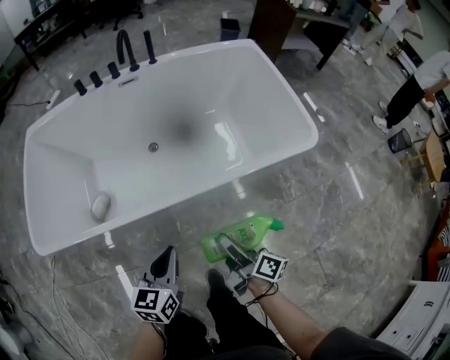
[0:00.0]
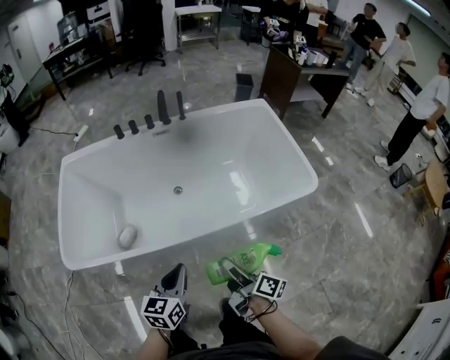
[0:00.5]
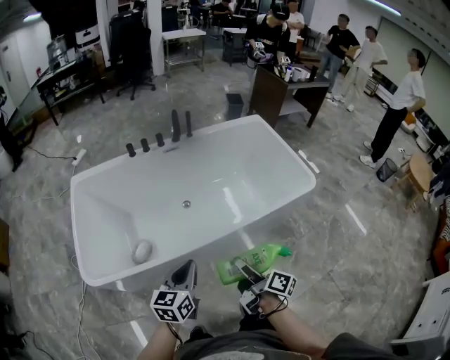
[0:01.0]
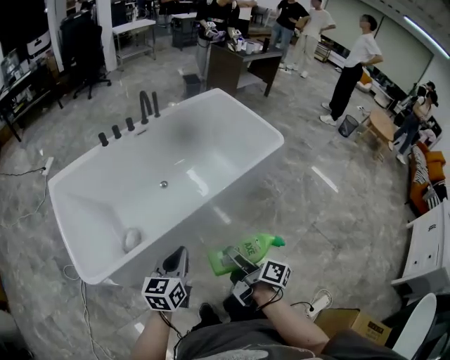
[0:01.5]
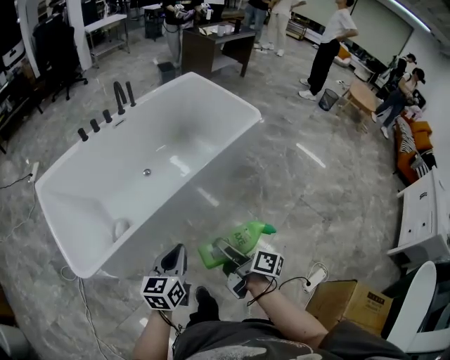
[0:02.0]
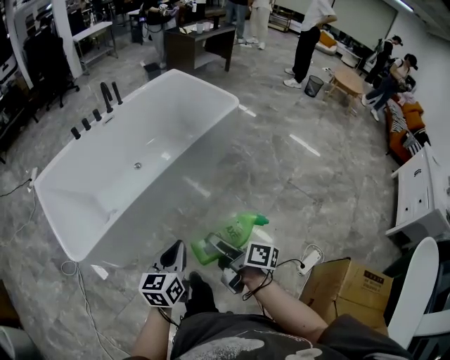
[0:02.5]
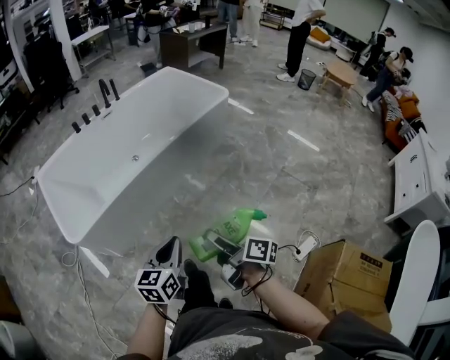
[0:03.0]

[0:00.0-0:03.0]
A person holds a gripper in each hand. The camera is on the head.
0:00.0 to 0:01.5: The right gripper heads to the left, backward and upward, covering some 35 cm, and rotates approximately 20 degrees. Meanwhile the left gripper heads to the left, upward and backward, covering some 30 cm, and swivels some 20 degrees.
0:01.5 to 0:03.0: The grippers both shift backward by roughly 30 cm.

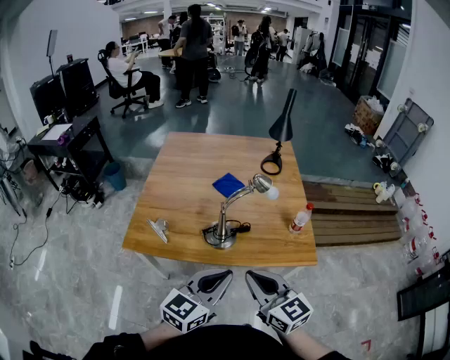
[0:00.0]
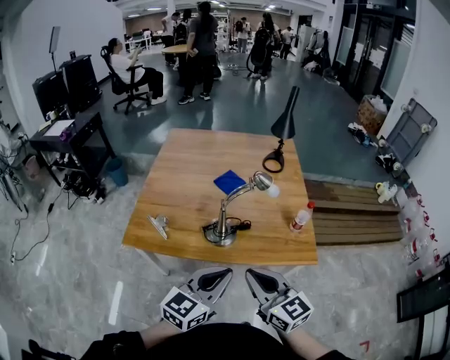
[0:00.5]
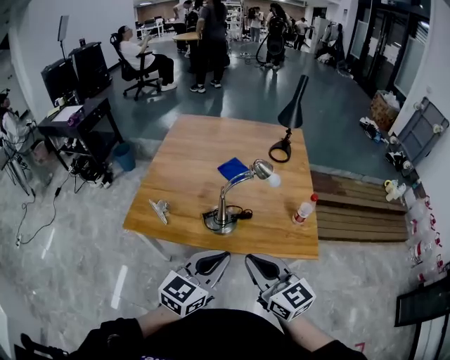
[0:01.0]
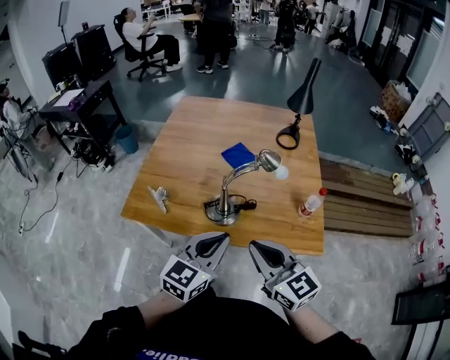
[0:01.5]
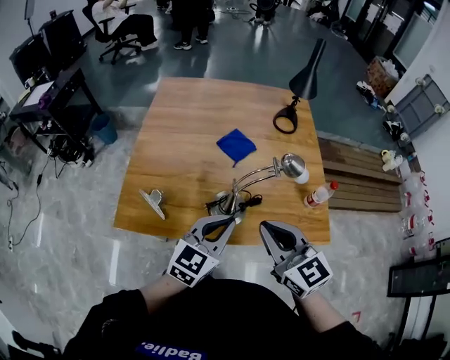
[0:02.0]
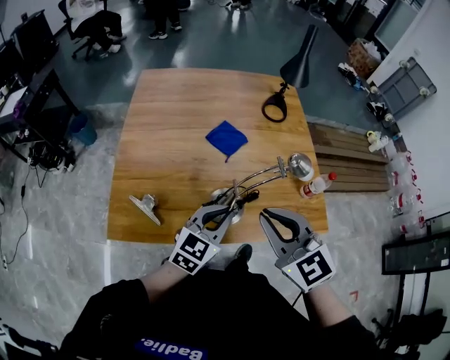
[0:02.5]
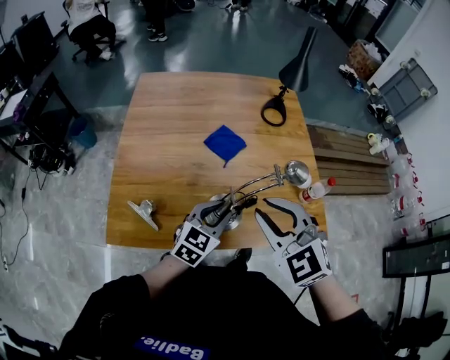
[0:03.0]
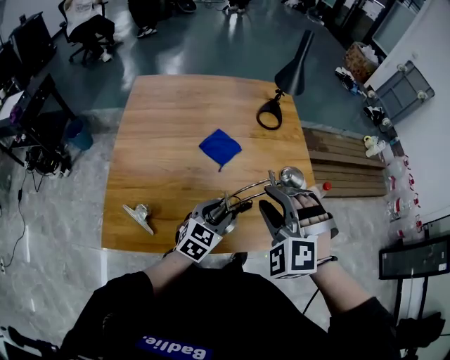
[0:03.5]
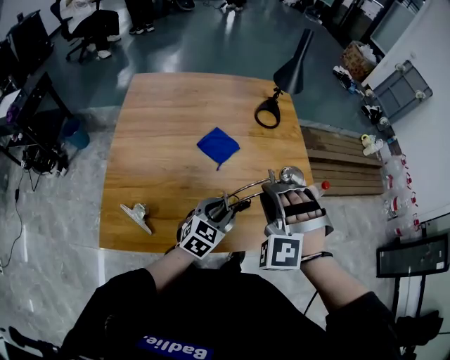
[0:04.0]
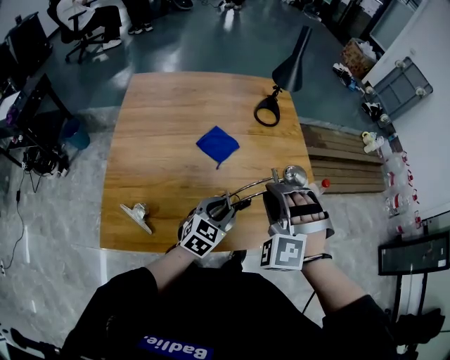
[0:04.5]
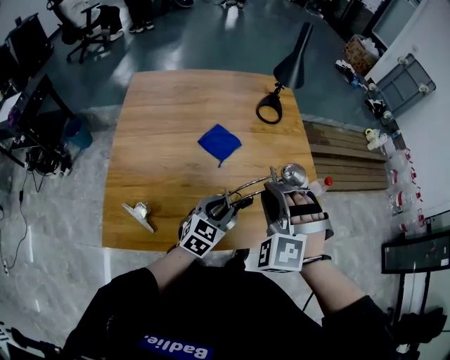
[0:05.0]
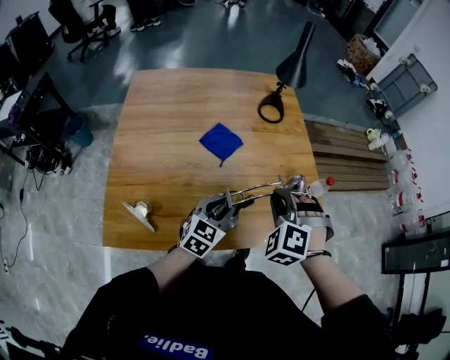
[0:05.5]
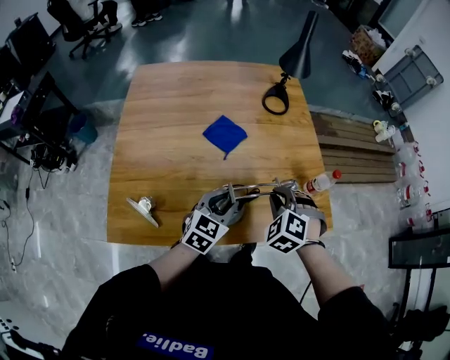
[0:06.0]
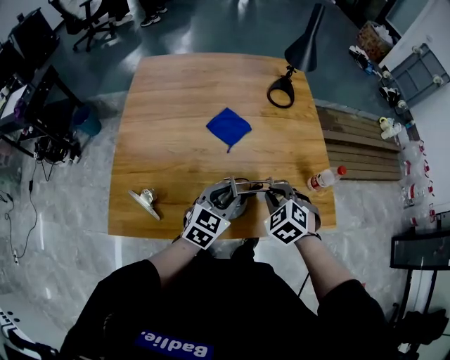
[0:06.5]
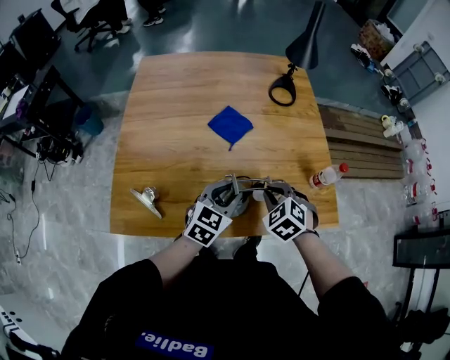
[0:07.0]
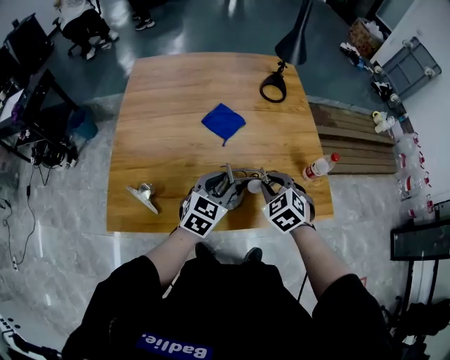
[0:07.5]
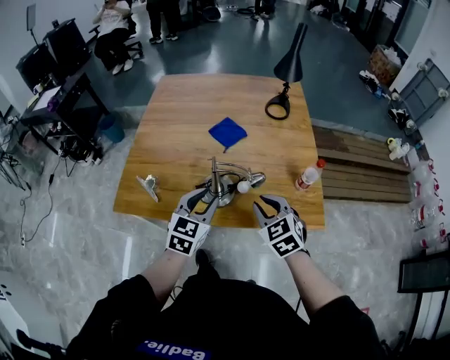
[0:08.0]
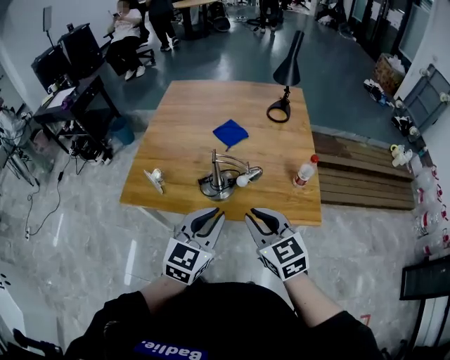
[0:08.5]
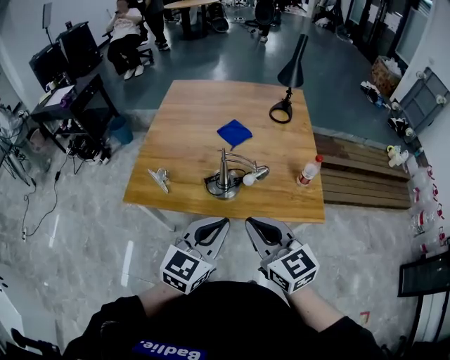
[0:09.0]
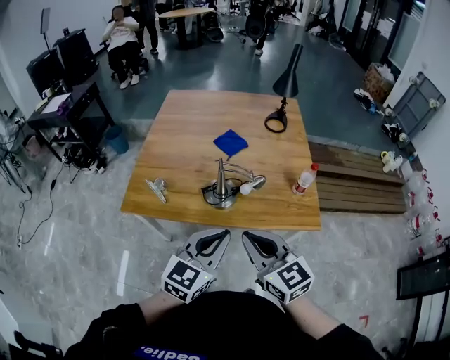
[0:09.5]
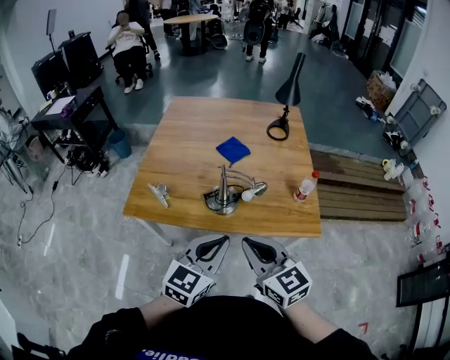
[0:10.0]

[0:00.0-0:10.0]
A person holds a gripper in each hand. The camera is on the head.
0:00.0 to 0:02.0: Both grippers move forward, some 15 cm.
0:02.0 to 0:04.0: The left gripper shifts approximately 10 cm downward, and opens its fingers. Meanwhile the right gripper shifts by roughly 15 cm, rotates around the line of its fingers by roughly 70 degrees, counterclockwise from behind, and opens its fingers.
0:04.0 to 0:06.0: The right gripper goes approximately 10 cm downward, and swivels some 30 degrees.
0:06.0 to 0:08.0: The right gripper ends up about 10 cm from where it was, and rotates approximately 40 degrees. Meanwhile the left gripper ends up some 10 cm from where it was.
0:08.0 to 0:10.0: The grippers both shift backward and upward by approximately 20 cm. The left gripper closes its fingers; the right gripper rotates approximately 30 degrees.

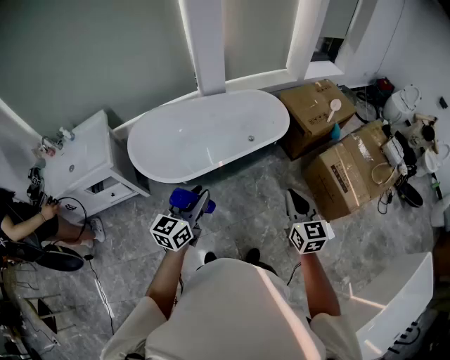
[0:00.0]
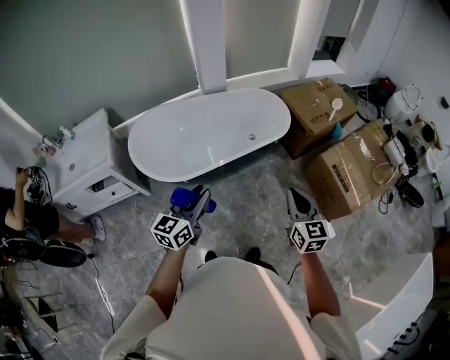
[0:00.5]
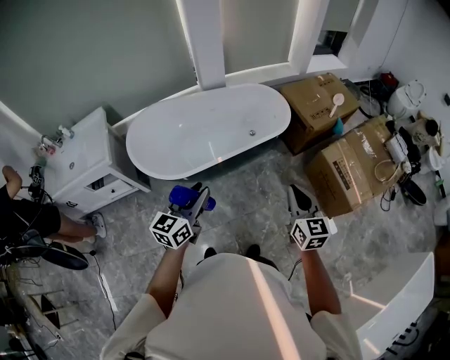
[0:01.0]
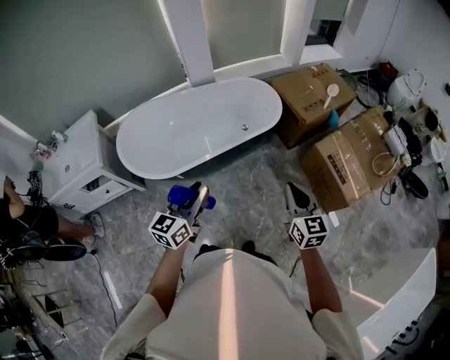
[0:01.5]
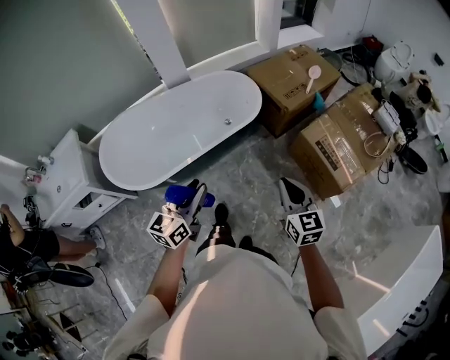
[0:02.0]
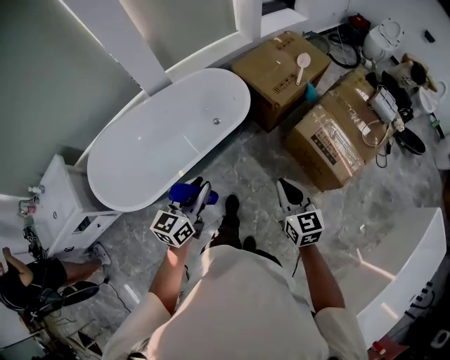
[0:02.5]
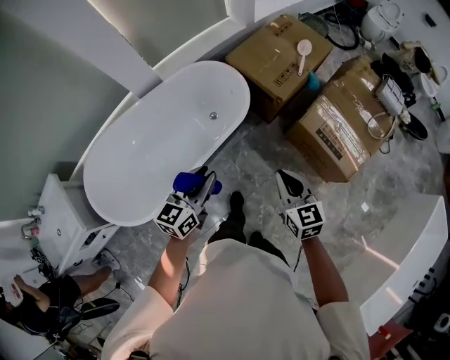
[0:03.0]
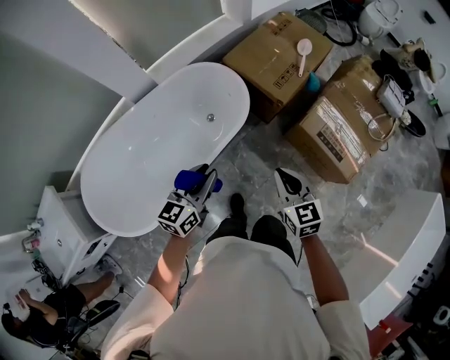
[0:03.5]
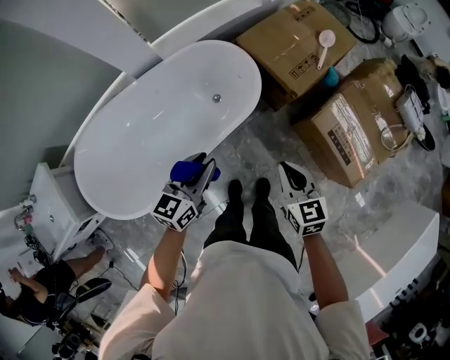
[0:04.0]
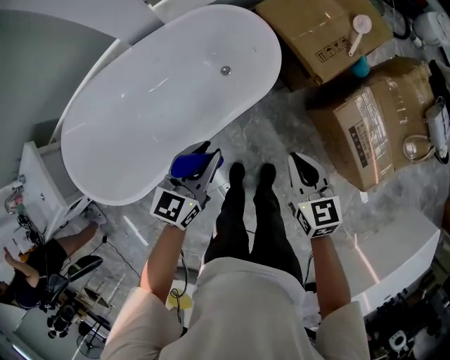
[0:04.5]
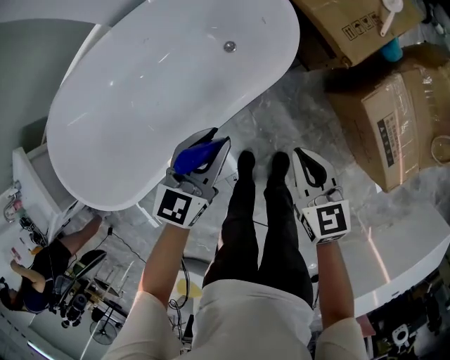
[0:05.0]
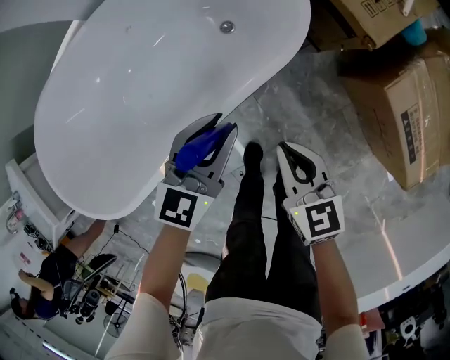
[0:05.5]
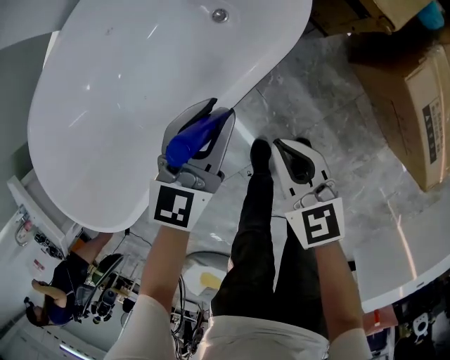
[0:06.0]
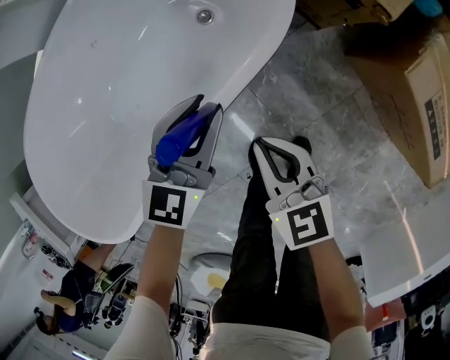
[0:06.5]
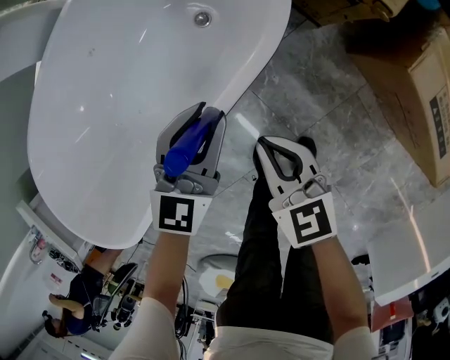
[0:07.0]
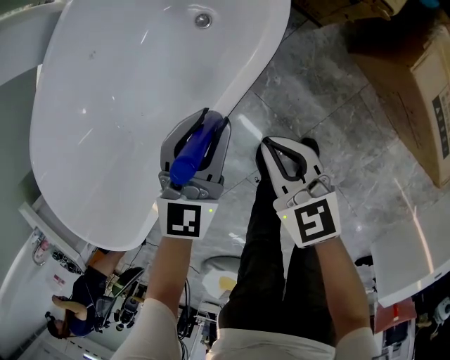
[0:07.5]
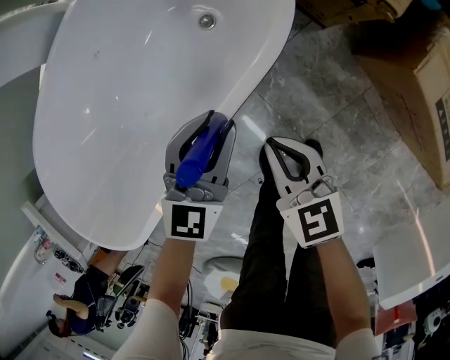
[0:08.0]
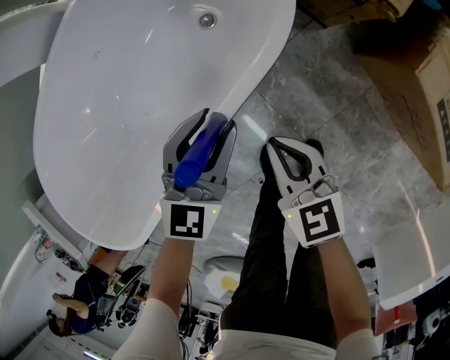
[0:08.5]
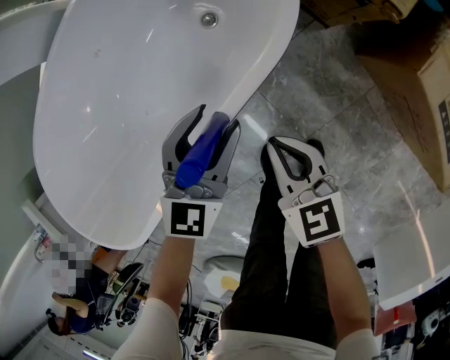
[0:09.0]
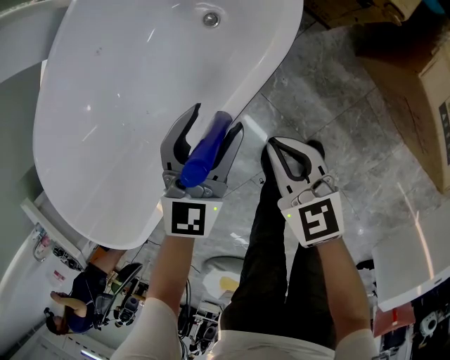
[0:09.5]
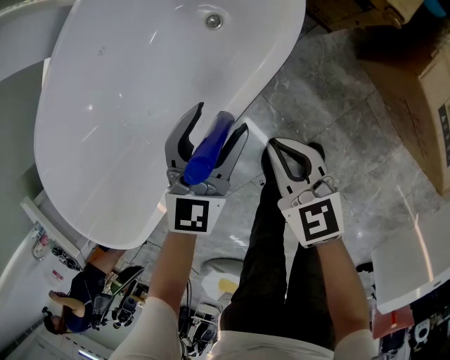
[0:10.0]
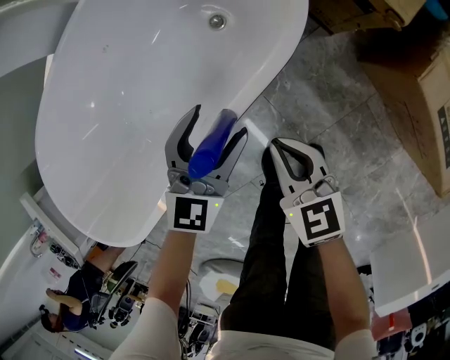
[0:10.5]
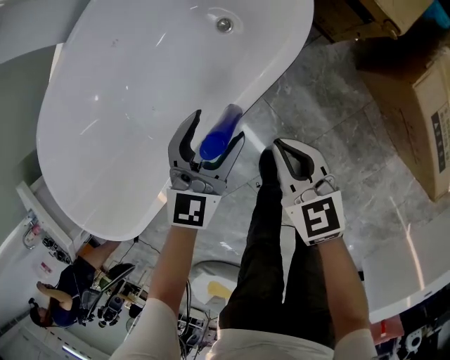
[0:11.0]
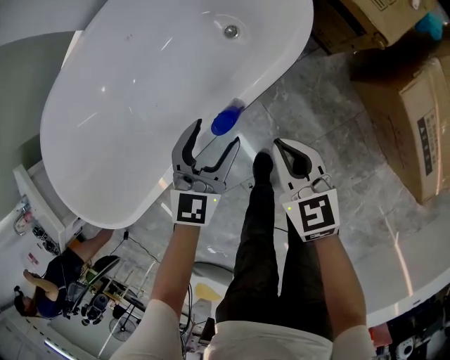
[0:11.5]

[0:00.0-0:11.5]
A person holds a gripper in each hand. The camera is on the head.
0:00.0 to 0:02.0: Both grippers move to the right and forward, roughly 20 cm.
0:02.0 to 0:04.0: The left gripper moves forward, about 35 cm. The right gripper travels forward and downward by about 35 cm.
0:04.0 to 0:06.0: Both grippers travel together downward, some 40 cm.
0:06.0 to 0:07.5: The right gripper goes some 5 cm downward, while the left gripper moves about 5 cm.
0:07.5 to 0:09.5: The left gripper opens up.
0:09.5 to 0:11.5: The left gripper travels backward by about 5 cm. Meanwhile the right gripper shifts approximately 5 cm upward.

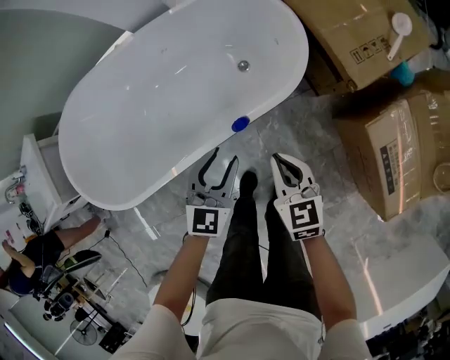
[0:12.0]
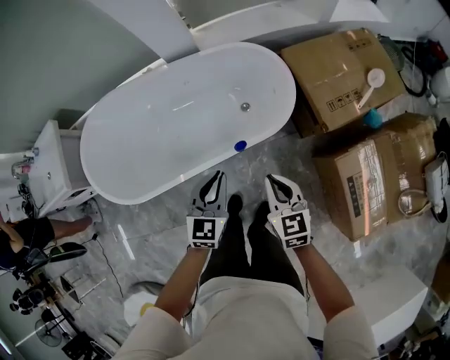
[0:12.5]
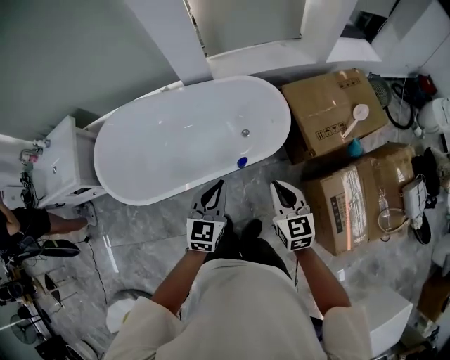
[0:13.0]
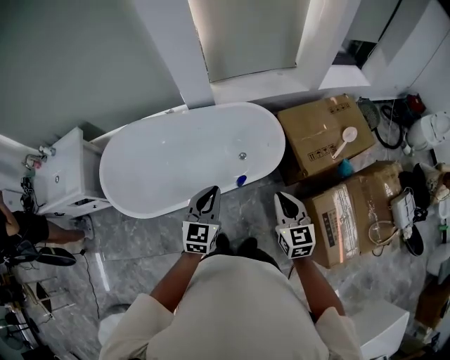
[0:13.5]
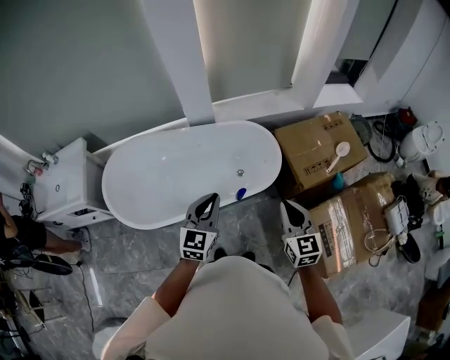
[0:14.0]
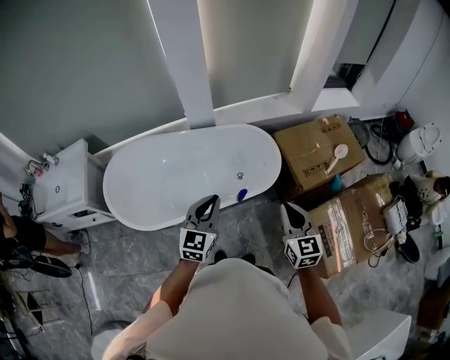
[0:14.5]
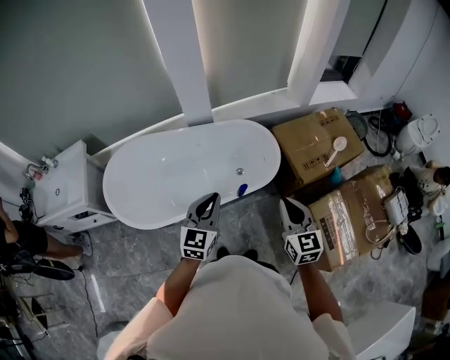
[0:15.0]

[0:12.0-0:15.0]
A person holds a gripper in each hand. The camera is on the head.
0:12.0 to 0:13.5: The grippers both shift upward by some 35 cm. The left gripper closes its fingers.
0:13.5 to 0:15.0: Both grippers move upward, roughly 5 cm.
